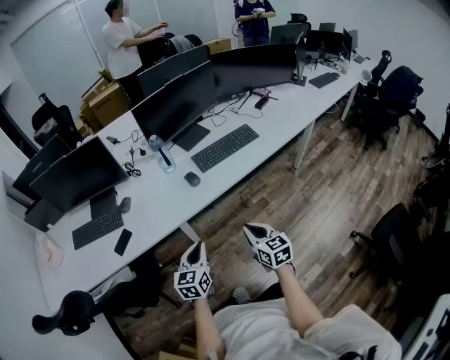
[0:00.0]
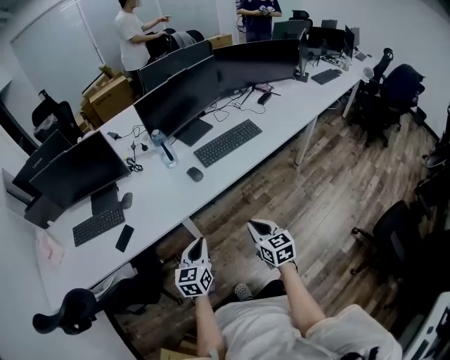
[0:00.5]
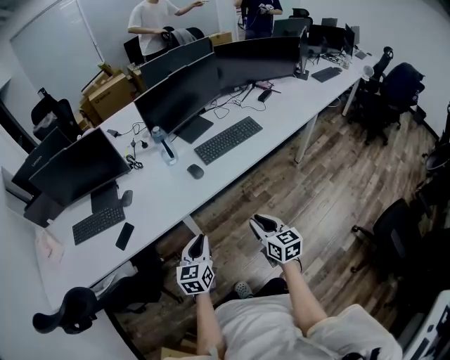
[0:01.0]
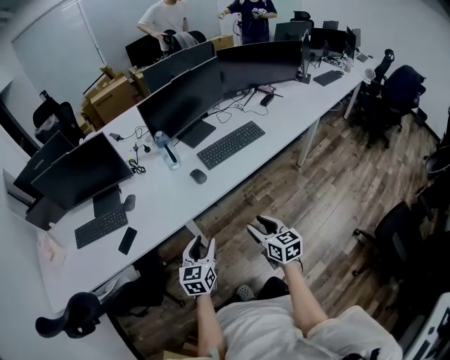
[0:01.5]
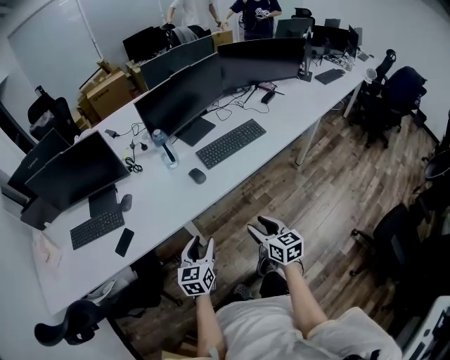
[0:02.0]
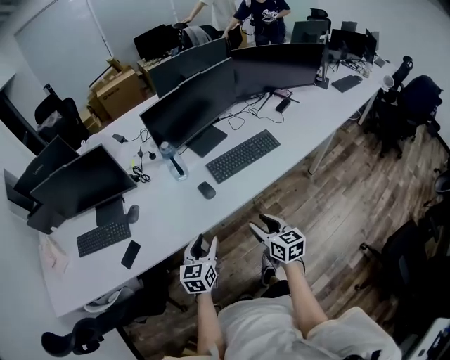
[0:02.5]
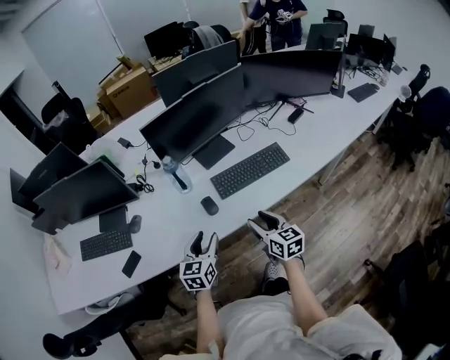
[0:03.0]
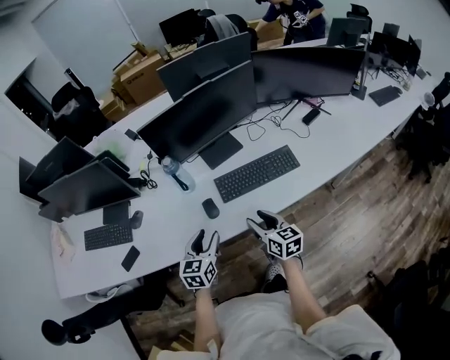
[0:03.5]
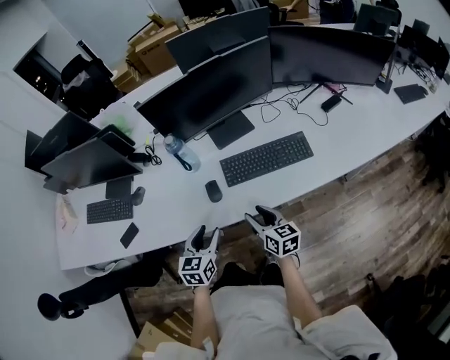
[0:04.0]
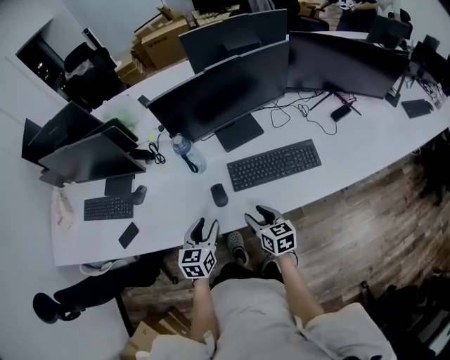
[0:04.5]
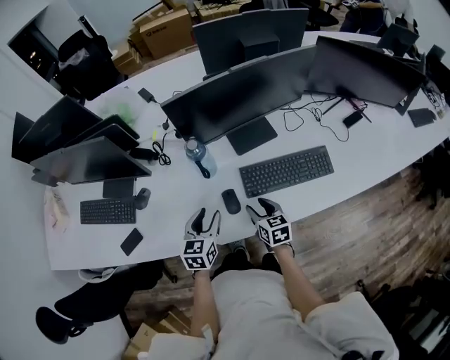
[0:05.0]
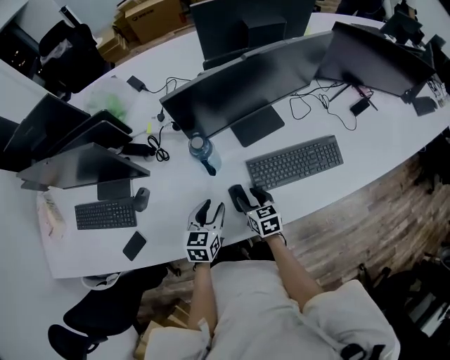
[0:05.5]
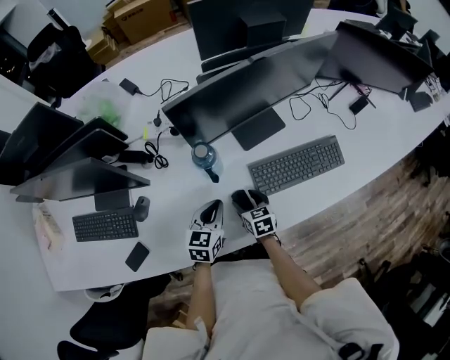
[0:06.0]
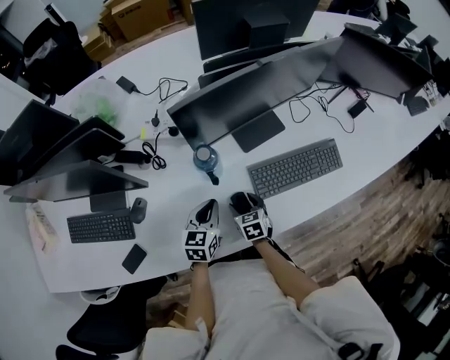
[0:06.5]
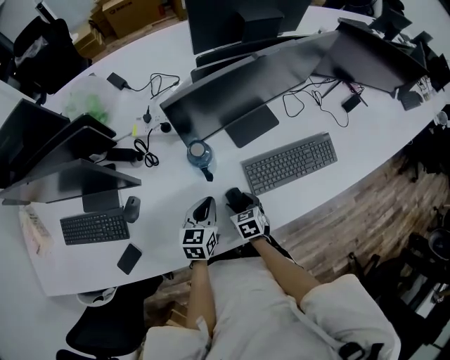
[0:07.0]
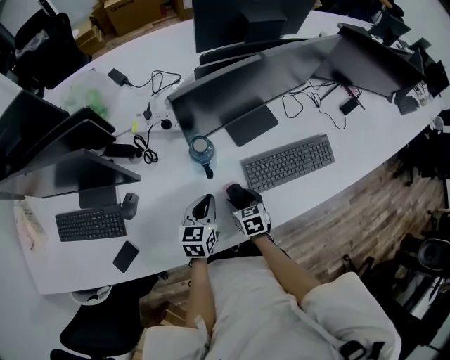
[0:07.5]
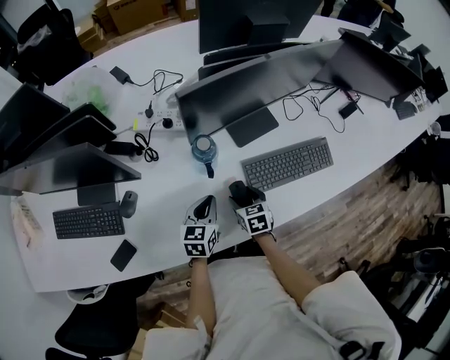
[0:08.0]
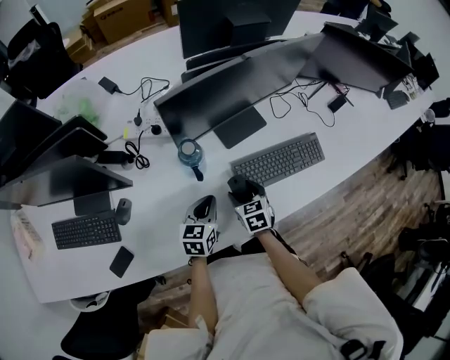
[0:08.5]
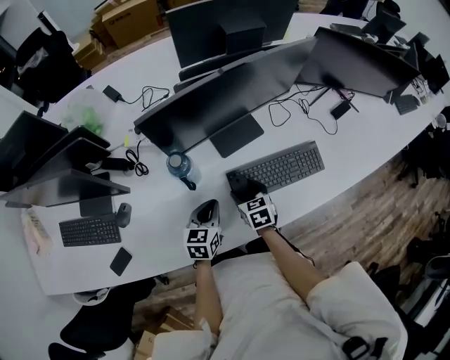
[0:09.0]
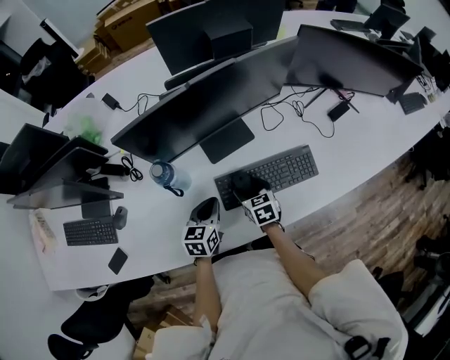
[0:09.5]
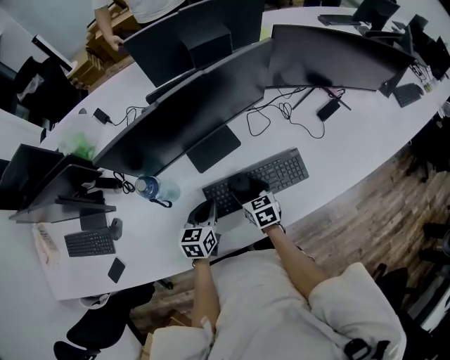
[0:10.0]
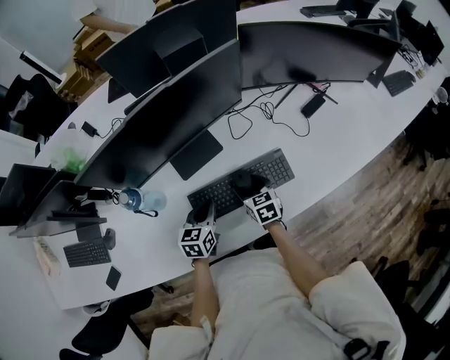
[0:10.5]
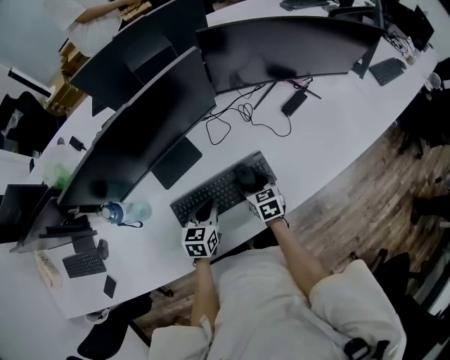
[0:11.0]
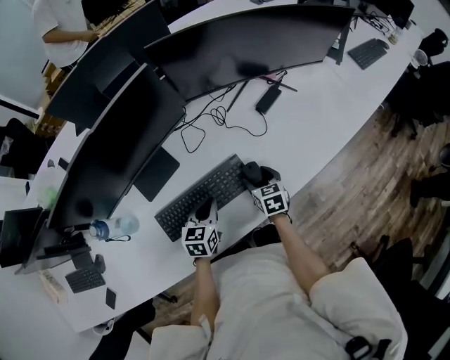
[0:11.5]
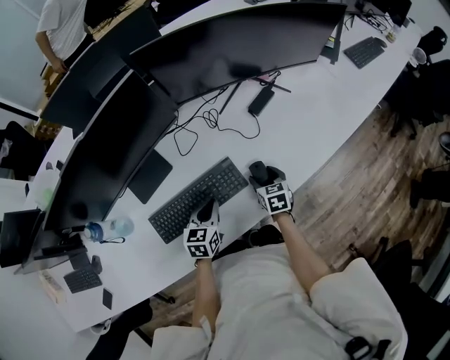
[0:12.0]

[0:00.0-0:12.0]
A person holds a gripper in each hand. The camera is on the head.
0:00.0 to 0:02.0: The left gripper opens its fingers; the right gripper opens its fingers.
0:02.0 to 0:04.0: The right gripper goes approximately 25 cm forward, and rotates about 20 degrees; the left gripper goes roughly 25 cm forward and to the right.
0:04.0 to 0:06.0: The left gripper heads forward, covering some 20 cm, and closes its fingers; the right gripper moves forward, to the left and downward, about 30 cm, and rotates about 30 degrees.
0:06.0 to 0:08.0: The grippers stay close to where they were, moving slightly.
0:08.0 to 0:10.0: The left gripper travels to the right by some 20 cm. The right gripper moves to the right and forward, roughly 20 cm.
0:10.0 to 0:12.0: The grippers both shift to the right by about 30 cm. The right gripper rotates roughly 20 degrees.

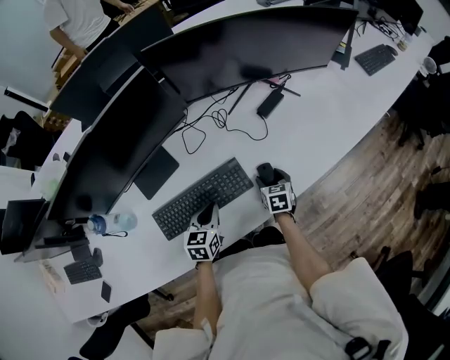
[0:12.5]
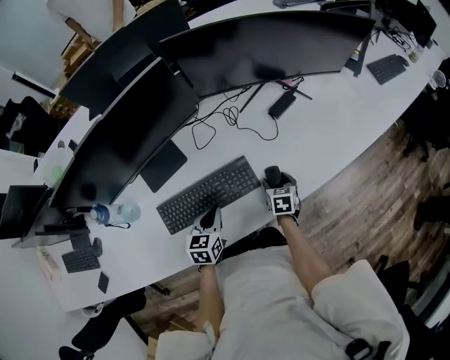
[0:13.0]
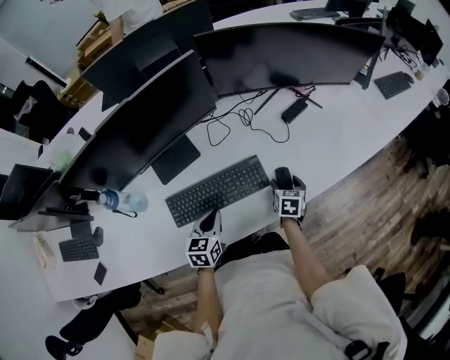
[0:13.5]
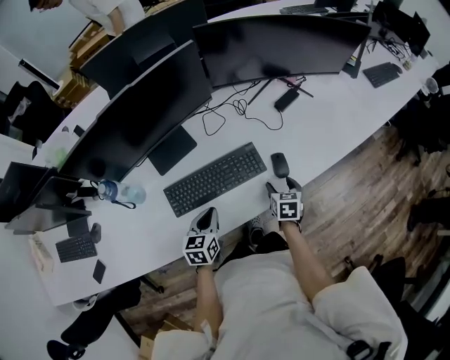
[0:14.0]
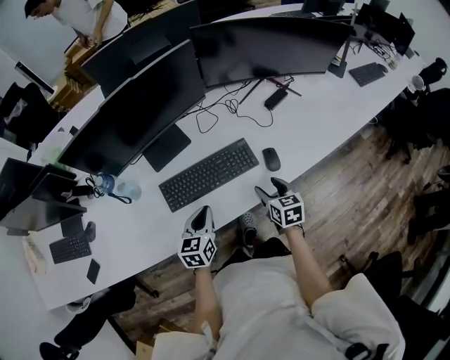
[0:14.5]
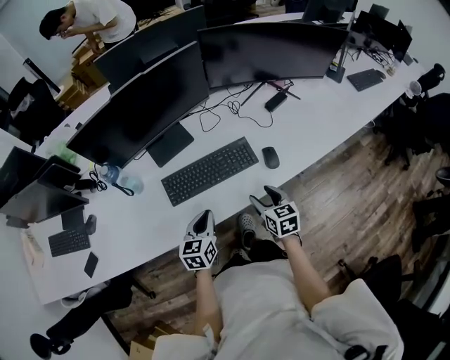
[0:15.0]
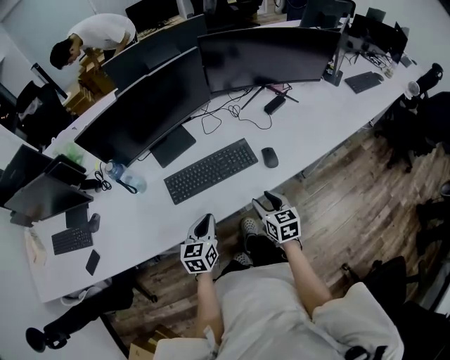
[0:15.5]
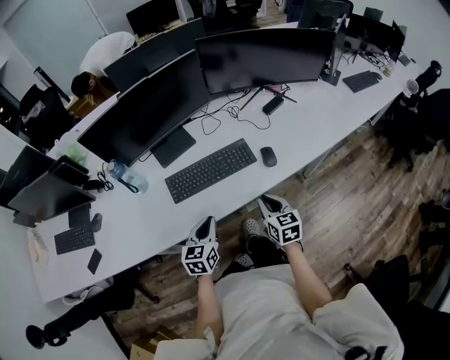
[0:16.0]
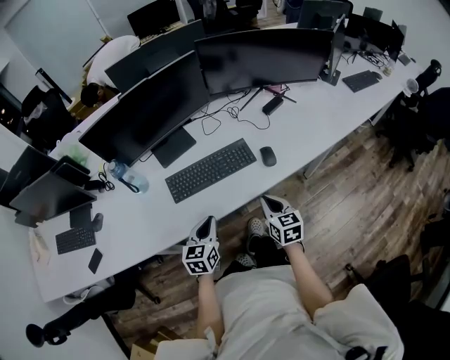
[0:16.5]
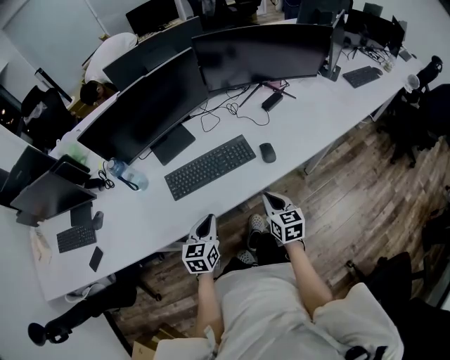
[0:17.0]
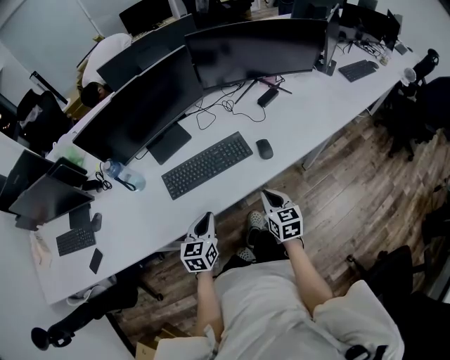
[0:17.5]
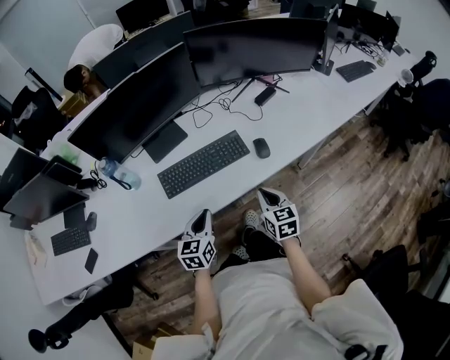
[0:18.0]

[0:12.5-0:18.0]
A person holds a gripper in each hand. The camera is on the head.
0:12.5 to 0:14.5: The left gripper moves backward, to the left and upward, about 15 cm. The right gripper moves backward, upward and to the left, roughly 20 cm.
0:14.5 to 0:16.0: The two grippers go approximately 10 cm backward. The right gripper closes.
0:16.0 to 0:18.0: The grippers move only a little.

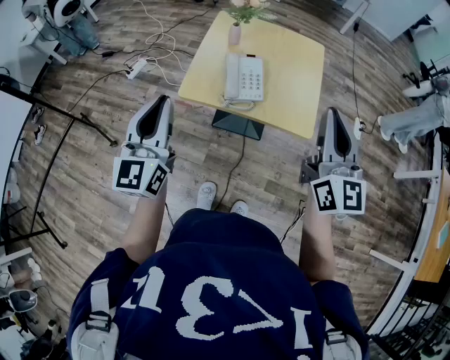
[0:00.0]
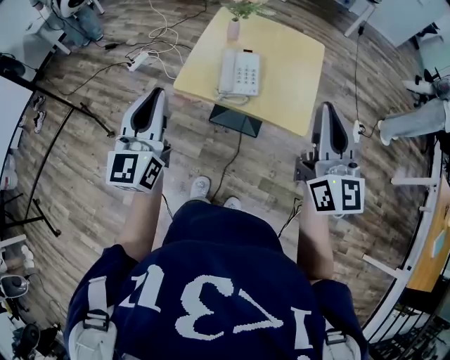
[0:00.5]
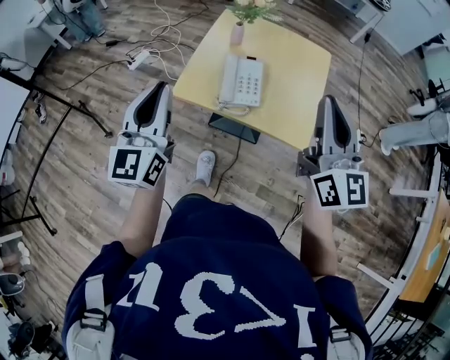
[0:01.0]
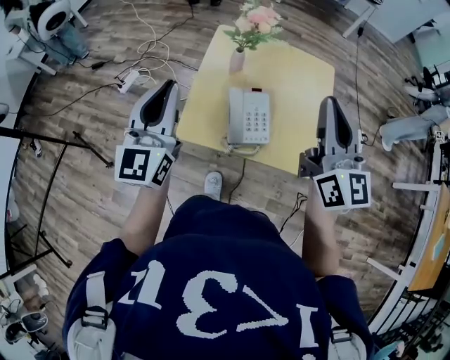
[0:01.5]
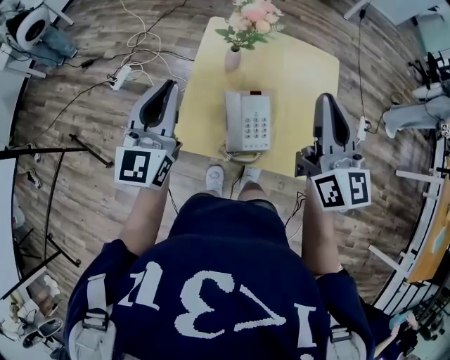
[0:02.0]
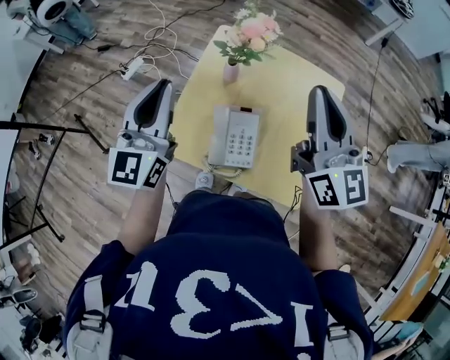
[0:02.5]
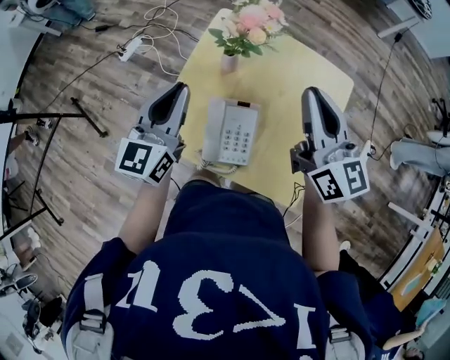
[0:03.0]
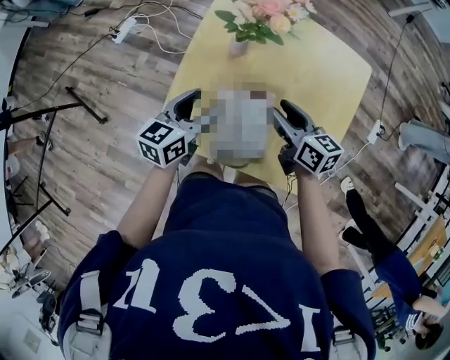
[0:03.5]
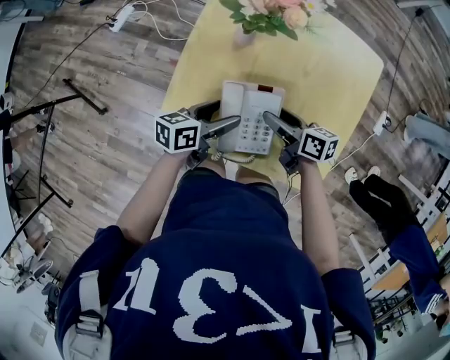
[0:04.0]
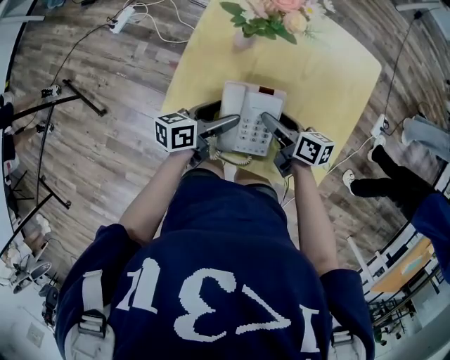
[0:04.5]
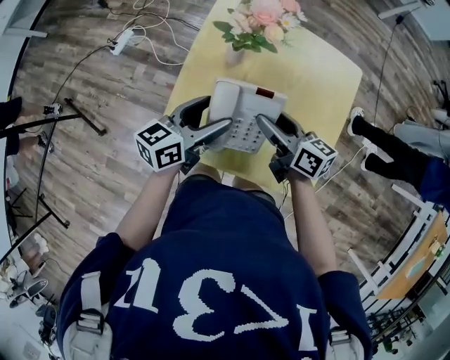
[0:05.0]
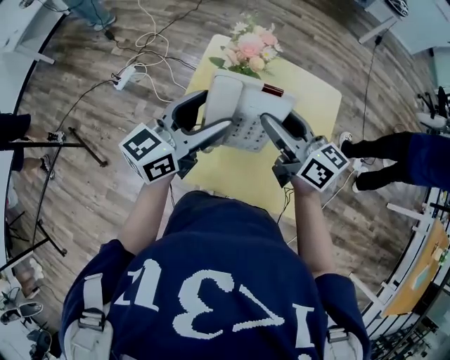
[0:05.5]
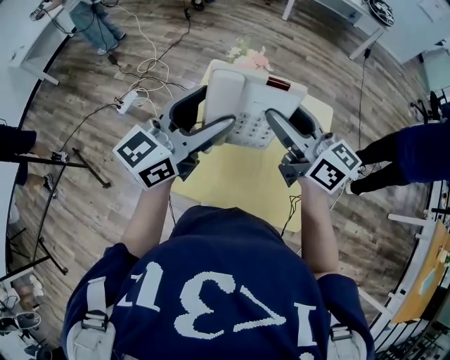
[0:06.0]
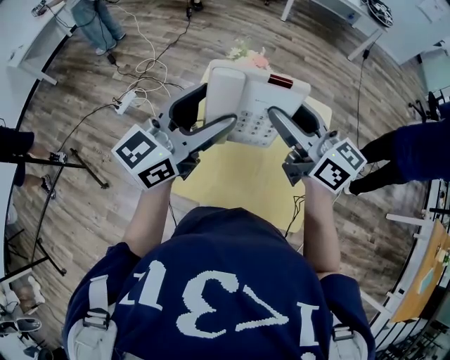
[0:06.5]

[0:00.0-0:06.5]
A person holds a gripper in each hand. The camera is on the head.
0:00.0 to 0:02.0: Both grippers move forward, approximately 30 cm.
0:02.0 to 0:04.5: The left gripper shifts about 35 cm downward and to the right, rotates around the line of its fingers by some 60 degrees, counterclockwise from behind, and opens up; the right gripper goes approximately 35 cm downward, tips its fingers downward by roughly 30 degrees, and opens.
0:04.5 to 0:06.5: Both grippers move upward, approximately 35 cm. The right gripper rotates about 50 degrees. Meanwhile the left gripper rolls clockwise, seen from behind, by some 50 degrees.

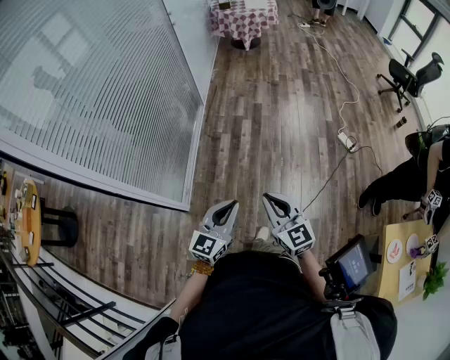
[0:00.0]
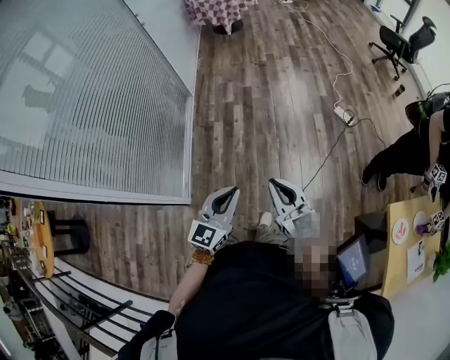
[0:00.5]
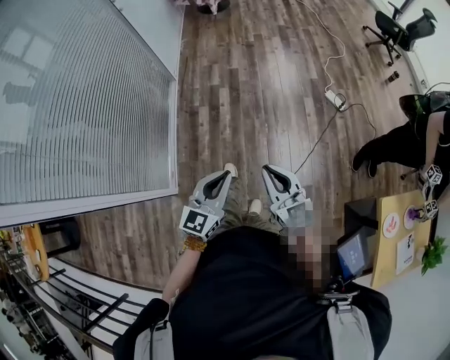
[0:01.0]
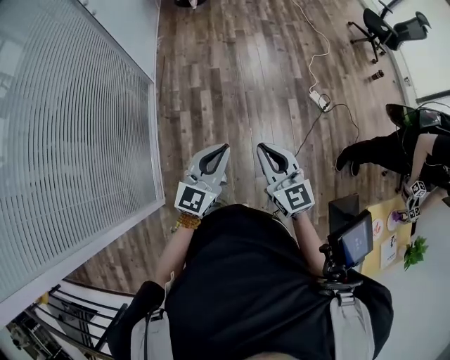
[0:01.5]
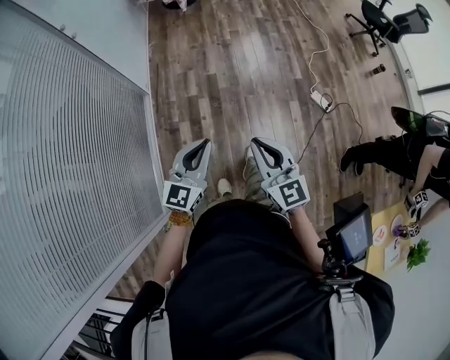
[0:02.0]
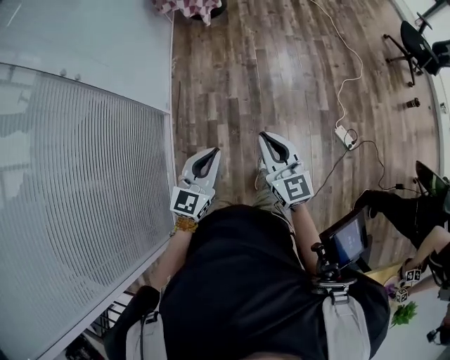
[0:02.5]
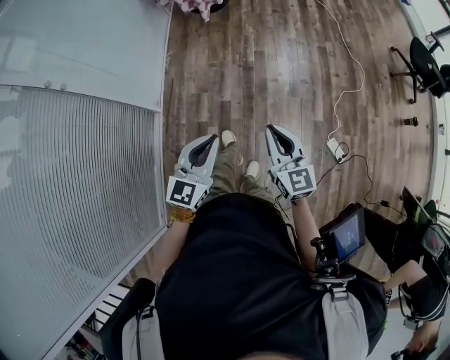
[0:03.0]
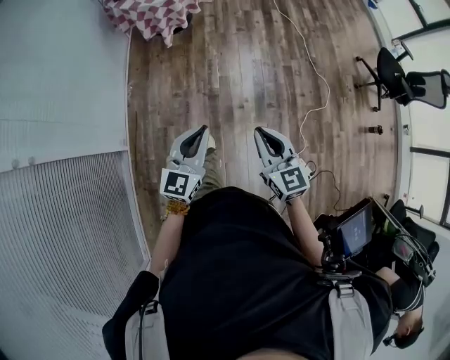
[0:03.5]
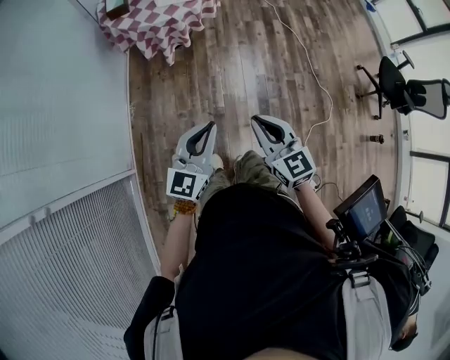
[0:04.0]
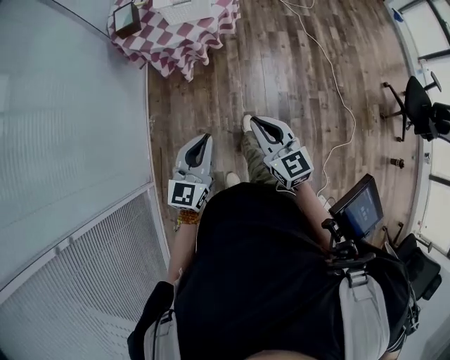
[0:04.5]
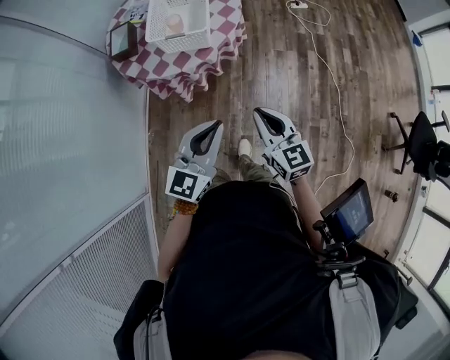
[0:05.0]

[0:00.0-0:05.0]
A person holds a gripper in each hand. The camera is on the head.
0:00.0 to 0:02.5: Both grippers are carried forward, about 80 cm.
0:02.5 to 0:05.0: Both grippers are carried forward, approximately 1 m.
